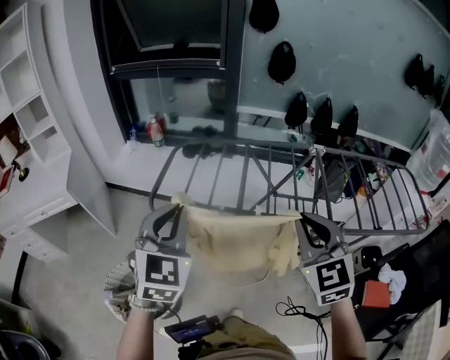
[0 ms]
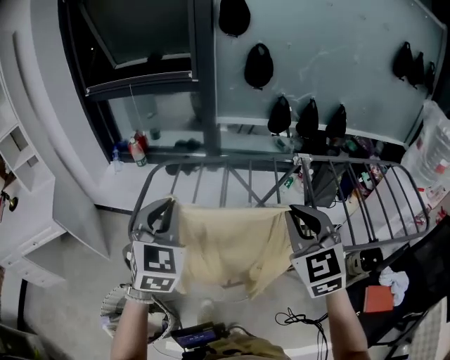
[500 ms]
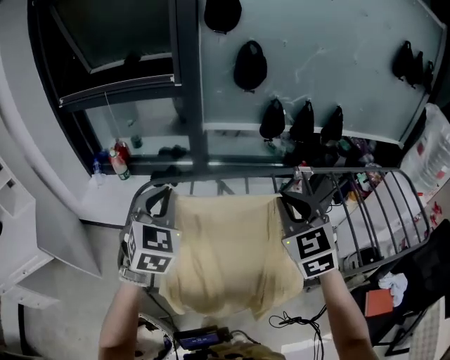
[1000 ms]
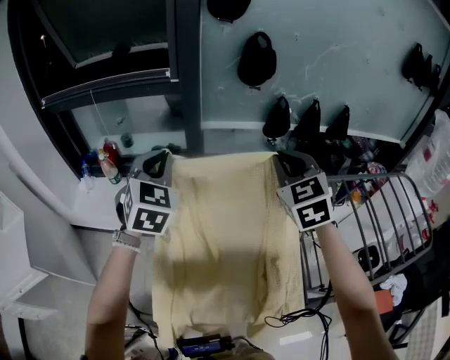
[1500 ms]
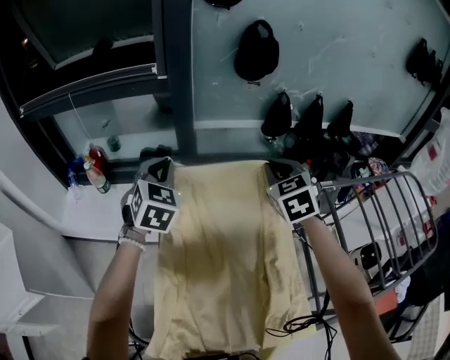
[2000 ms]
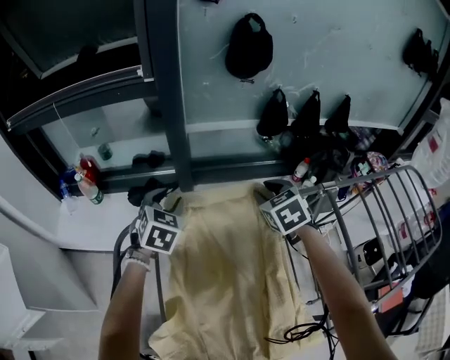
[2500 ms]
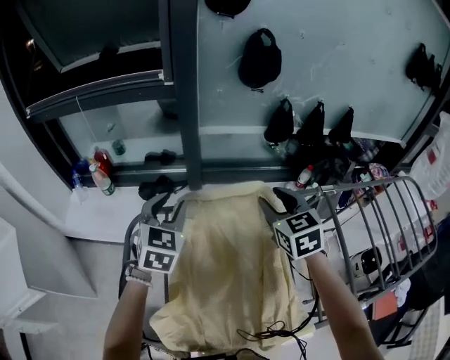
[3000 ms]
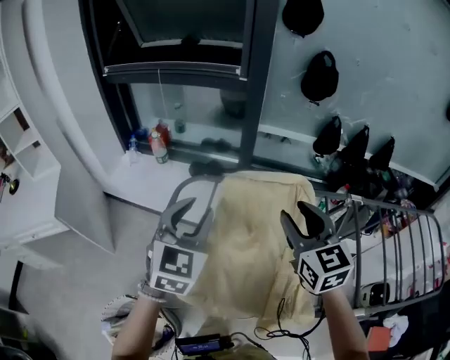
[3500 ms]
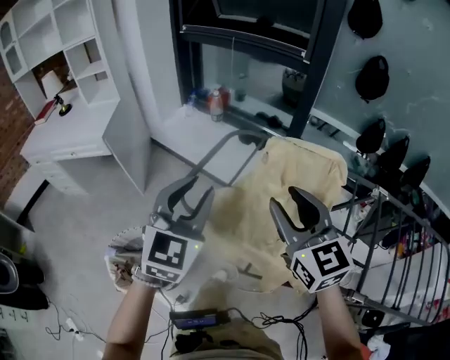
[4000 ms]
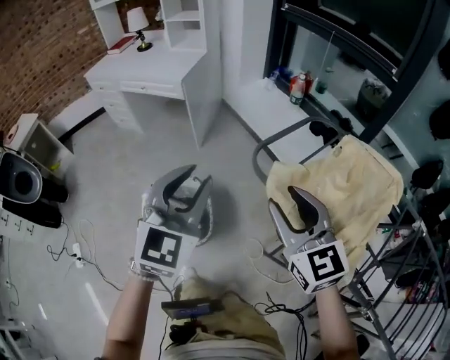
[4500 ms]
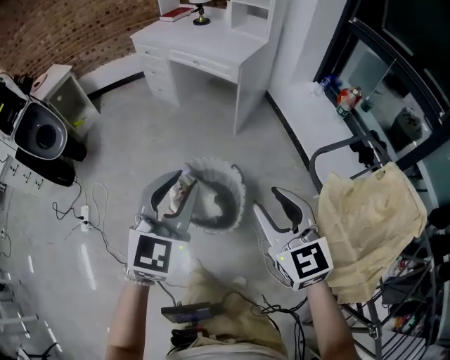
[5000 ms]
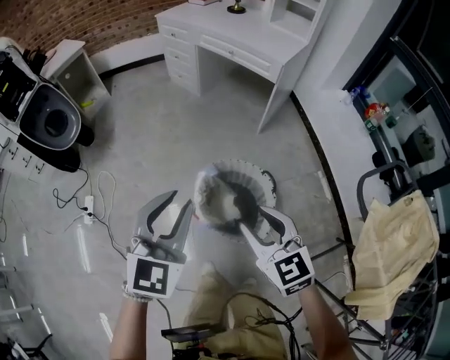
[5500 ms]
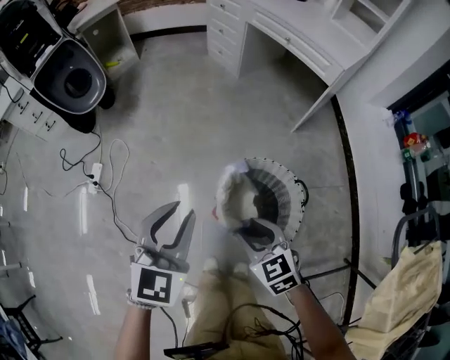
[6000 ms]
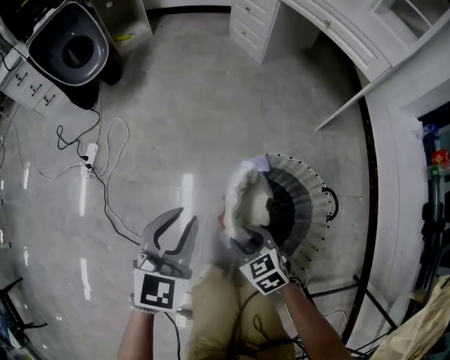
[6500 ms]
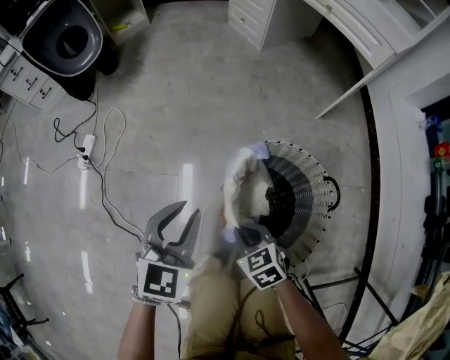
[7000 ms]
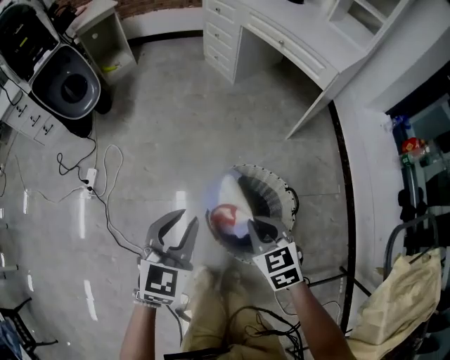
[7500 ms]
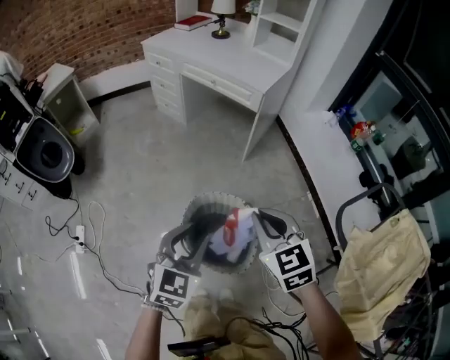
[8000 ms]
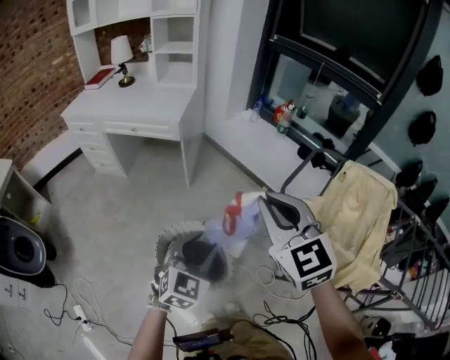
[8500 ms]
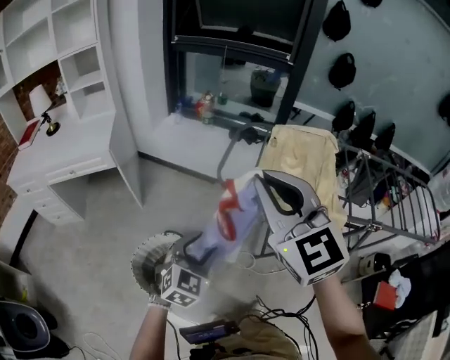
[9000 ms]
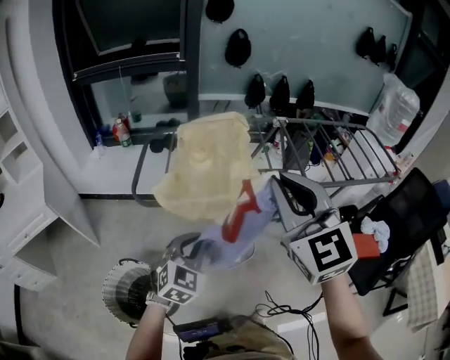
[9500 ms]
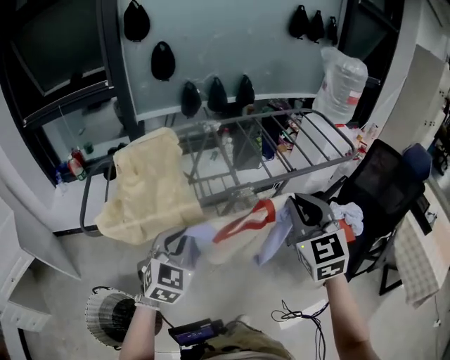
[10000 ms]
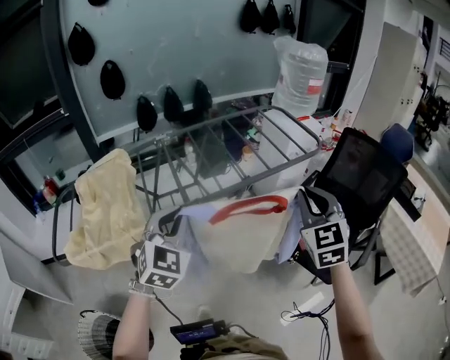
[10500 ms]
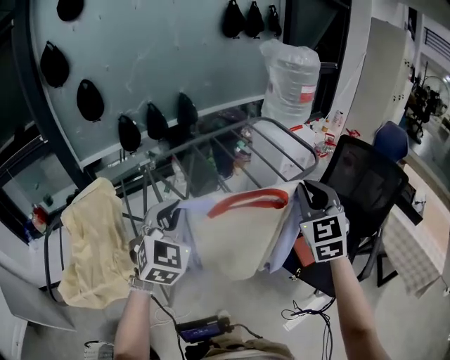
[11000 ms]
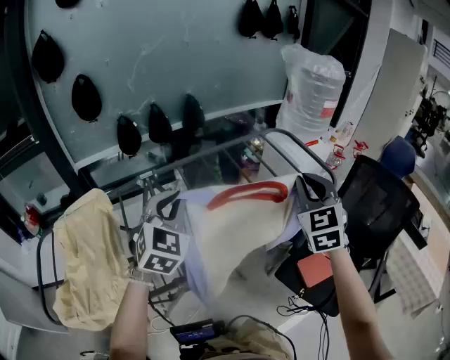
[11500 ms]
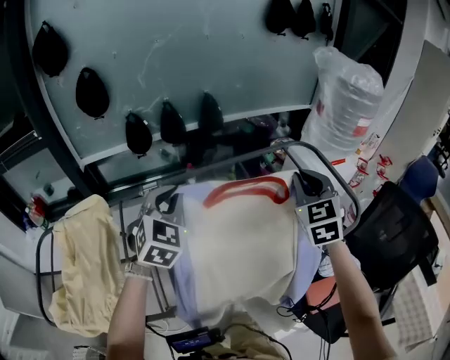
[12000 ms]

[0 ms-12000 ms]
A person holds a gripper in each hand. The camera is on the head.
0 ms to 2000 ms: Both grippers are carried forward, roughly 60 cm. The right gripper rotates some 20 degrees.
2000 ms to 4000 ms: The two grippers travel together, roughly 40 cm. The right gripper changes its angle by roughly 50 degrees, and opens. Meanwhile the left gripper turns by about 30 degrees, and opens up.
4000 ms to 6000 ms: The two grippers travel together, roughly 70 cm. The left gripper turns by approximately 60 degrees; the right gripper tilts its fingers approximately 30 degrees downward.
6000 ms to 8000 ms: The right gripper moves upward, some 20 cm, turns by approximately 20 degrees, and closes up; the left gripper travels downward and back again, some 20 cm each way, and rotates approximately 20 degrees.
8000 ms to 10000 ms: The pair of grippers is taken some 70 cm. The left gripper turns by roughly 90 degrees, and closes. Meanwhile the right gripper turns by roughly 100 degrees.
10000 ms to 12000 ms: The two grippers travel together, forward, roughly 50 cm.

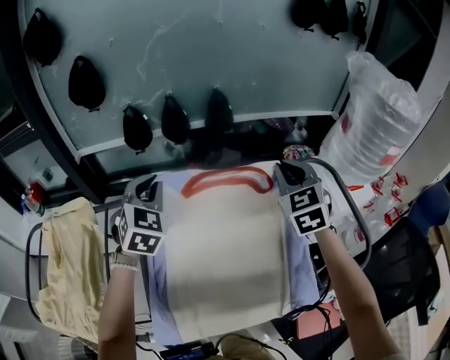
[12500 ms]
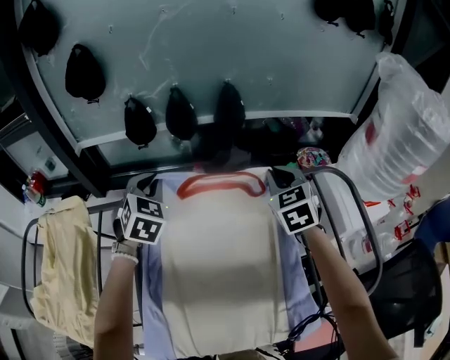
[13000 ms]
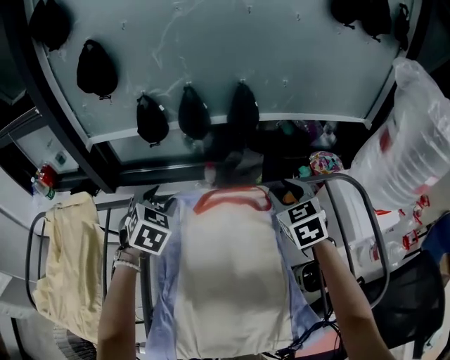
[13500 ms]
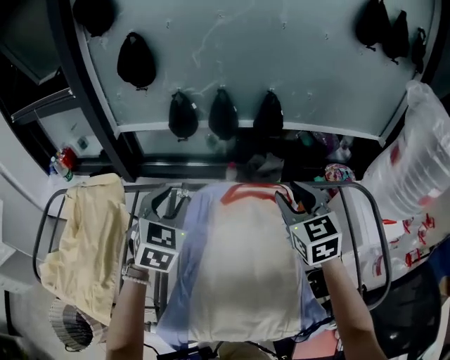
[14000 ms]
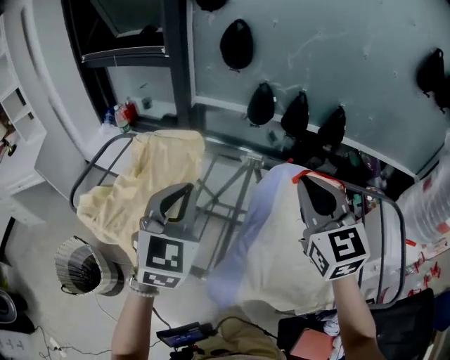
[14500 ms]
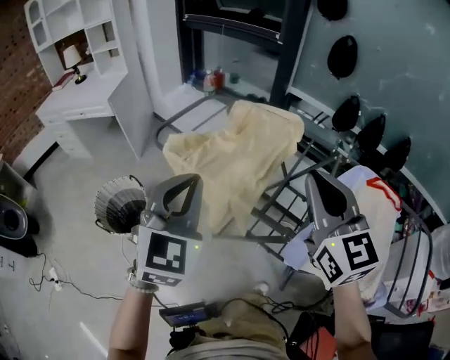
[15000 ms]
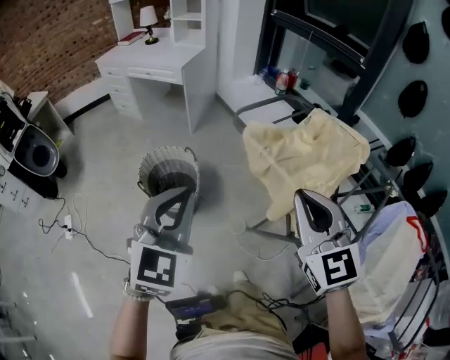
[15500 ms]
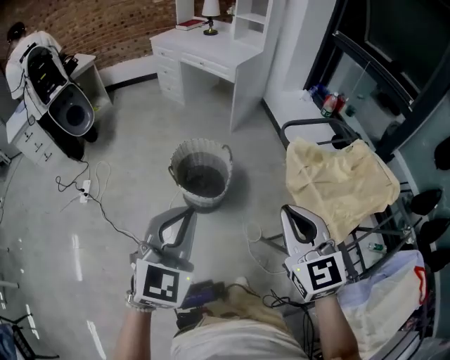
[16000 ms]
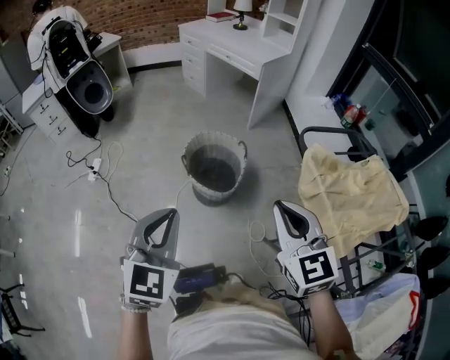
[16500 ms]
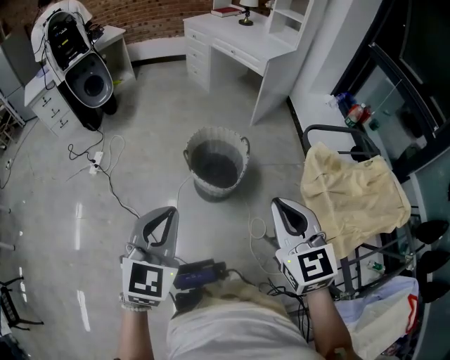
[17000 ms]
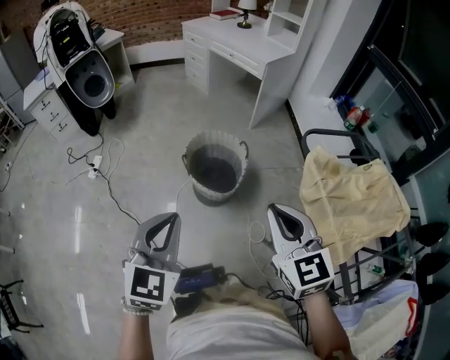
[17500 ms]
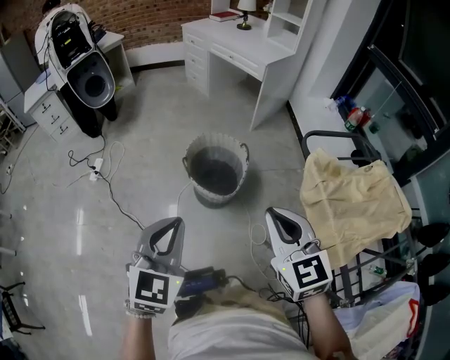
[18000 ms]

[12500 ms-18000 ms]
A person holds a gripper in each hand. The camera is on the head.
12500 ms to 14500 ms: The left gripper moves roughly 30 cm, swivels some 20 degrees, and opens, then closes once more, while the right gripper changes place by roughly 30 cm, changes its angle by some 40 degrees, and opens and closes again.
14500 ms to 16000 ms: The pair of grippers is taken some 60 cm. The right gripper turns by approximately 60 degrees. The left gripper turns by roughly 50 degrees.
16000 ms to 18000 ms: The right gripper shifts by about 5 cm, while the left gripper moves to the left, roughly 5 cm.

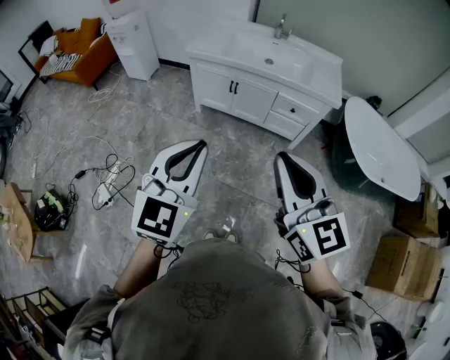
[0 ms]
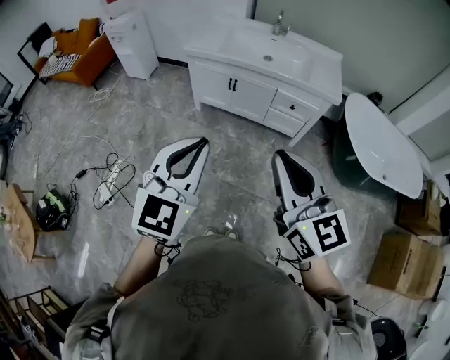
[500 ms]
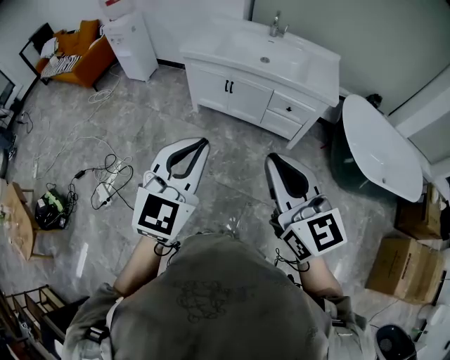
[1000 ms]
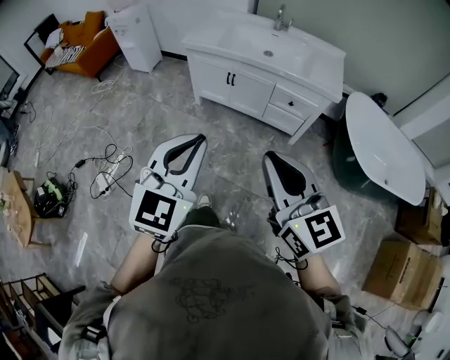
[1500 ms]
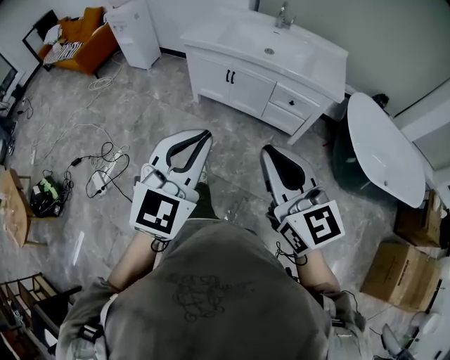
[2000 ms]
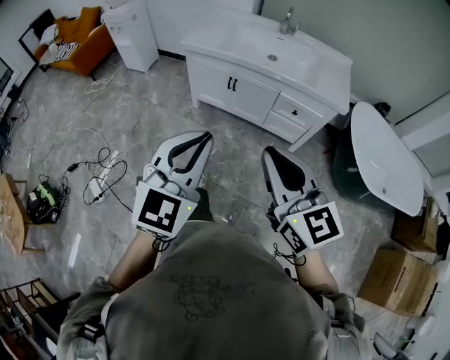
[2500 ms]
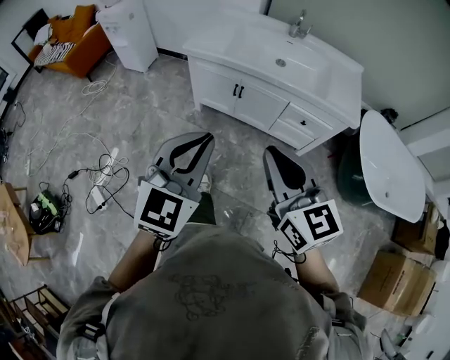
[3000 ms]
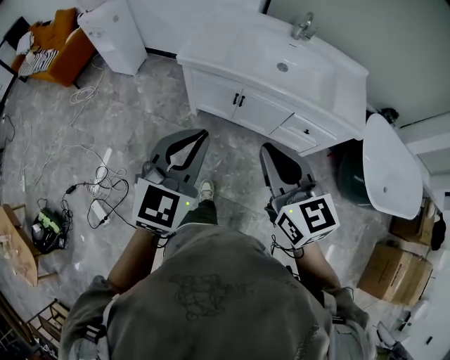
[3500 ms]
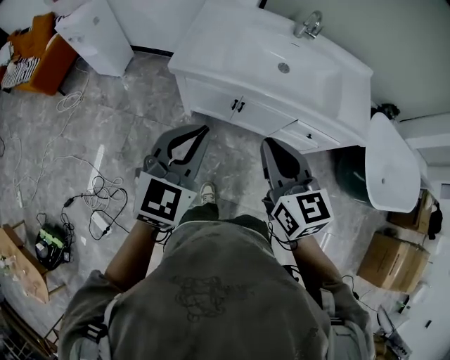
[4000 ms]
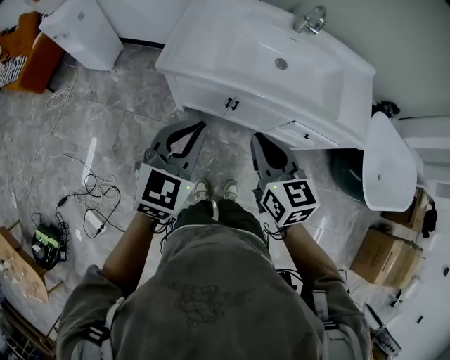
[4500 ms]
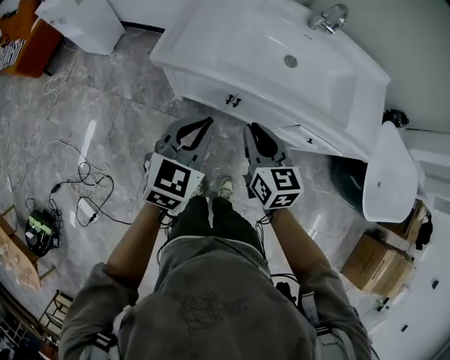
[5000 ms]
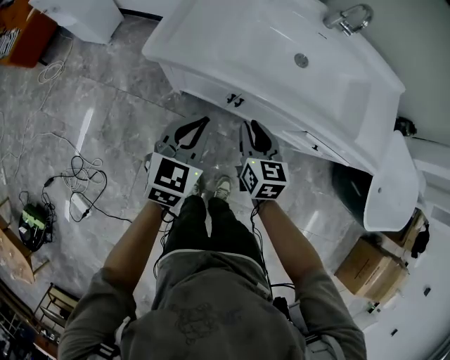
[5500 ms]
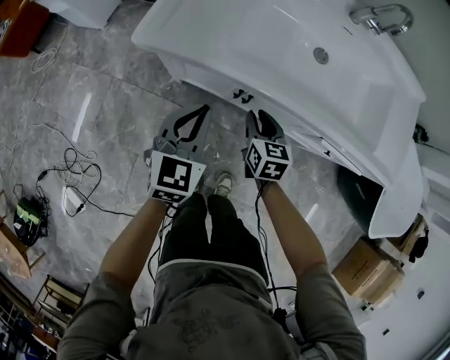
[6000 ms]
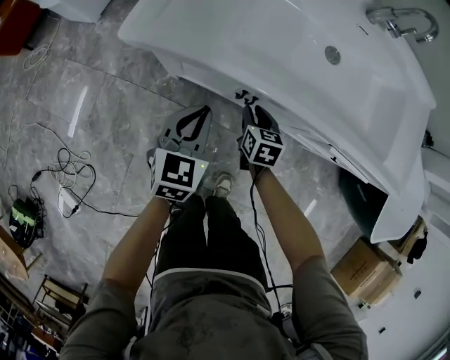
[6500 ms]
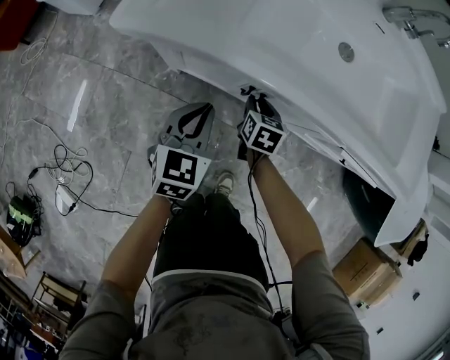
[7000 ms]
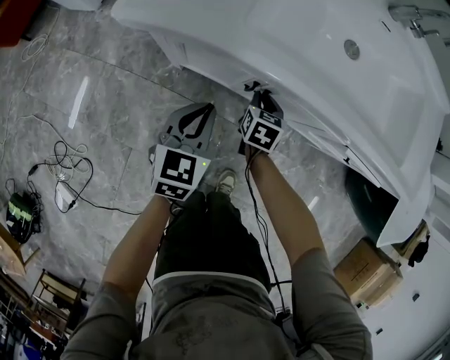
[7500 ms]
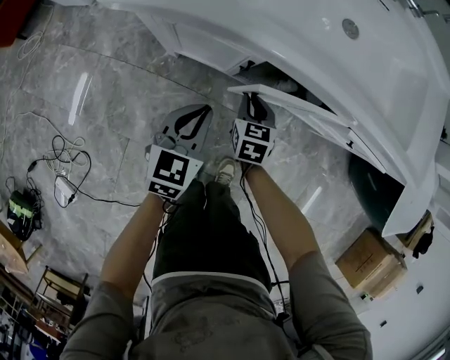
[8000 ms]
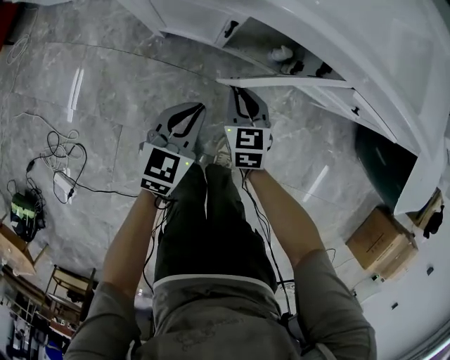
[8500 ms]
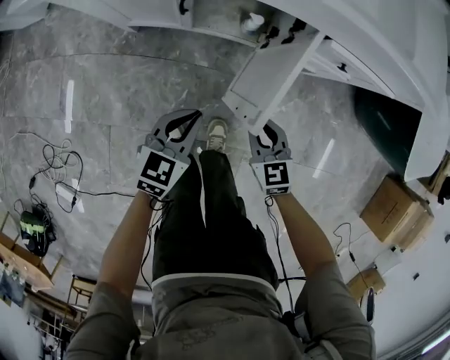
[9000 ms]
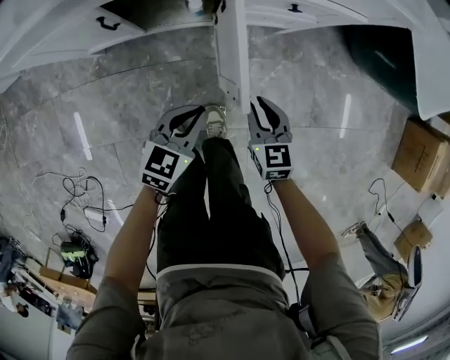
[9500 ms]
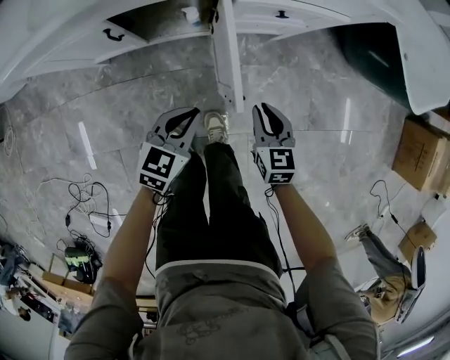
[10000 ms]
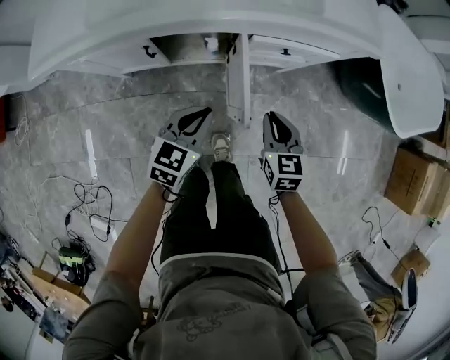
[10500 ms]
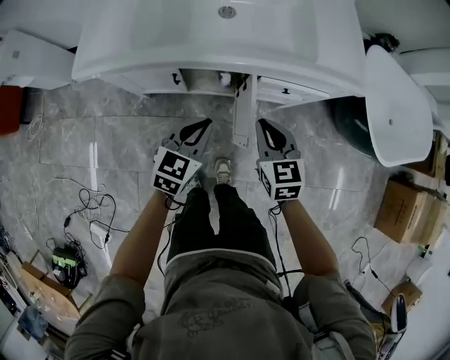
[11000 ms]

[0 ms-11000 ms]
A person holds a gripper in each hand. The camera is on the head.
0 ms to 2000 ms: The left gripper shifts some 10 cm to the right. The right gripper is displaced downward by approximately 5 cm.
2000 ms to 3500 ms: The two grippers go some 35 cm forward.
3500 ms to 5500 ms: The left gripper moves forward and downward, about 40 cm, and rotates about 20 degrees, while the right gripper goes about 40 cm downward and forward, and rotates approximately 30 degrees.
5500 ms to 7500 ms: Both grippers travel together downward, roughly 25 cm. The right gripper turns by roughly 20 degrees.
7500 ms to 9000 ms: The right gripper travels backward and to the right by approximately 30 cm, and swivels roughly 30 degrees. Meanwhile the left gripper travels to the right, backward and downward by roughly 25 cm, and swivels about 20 degrees.
9000 ms to 11000 ms: The two grippers go some 25 cm upward.
